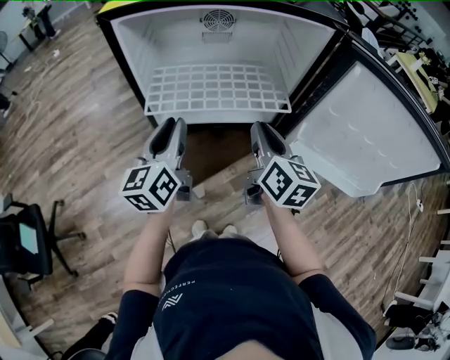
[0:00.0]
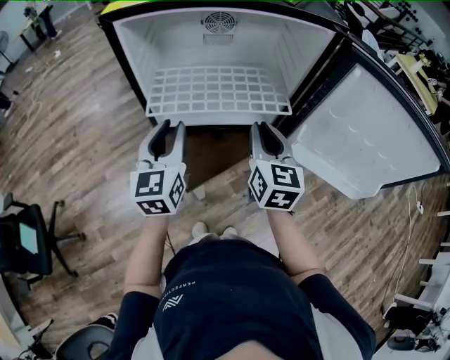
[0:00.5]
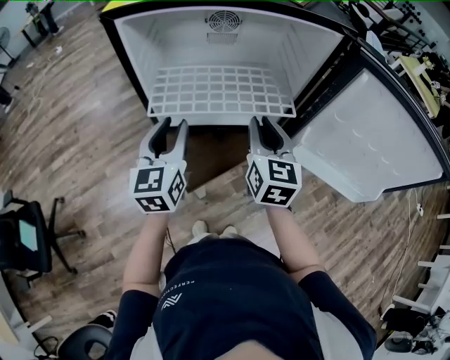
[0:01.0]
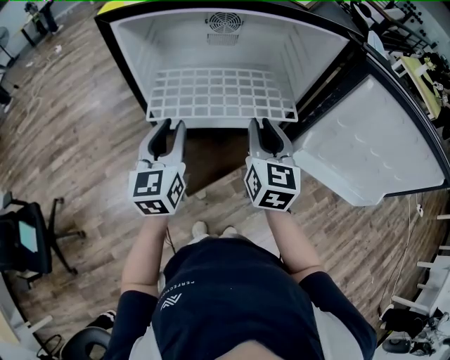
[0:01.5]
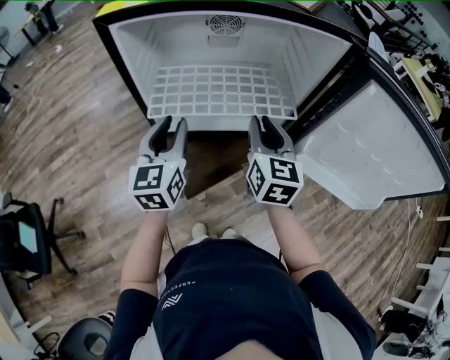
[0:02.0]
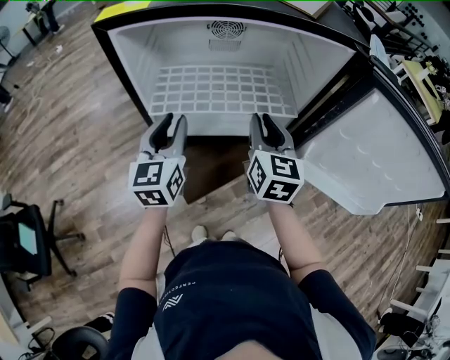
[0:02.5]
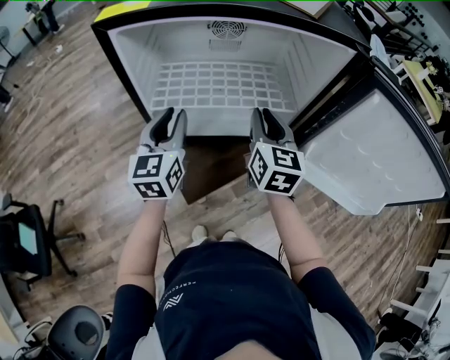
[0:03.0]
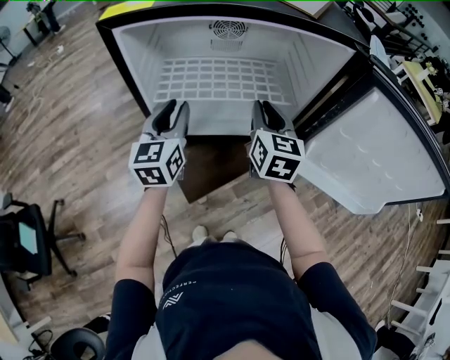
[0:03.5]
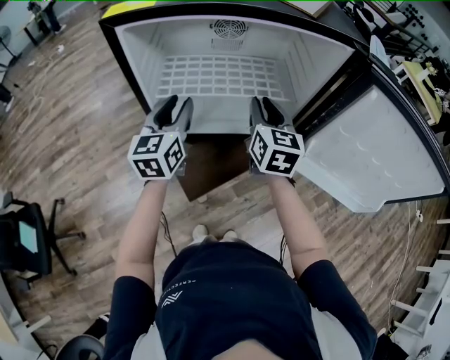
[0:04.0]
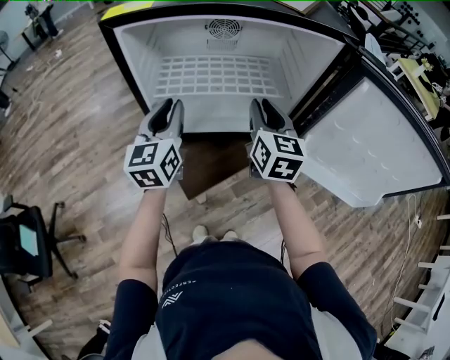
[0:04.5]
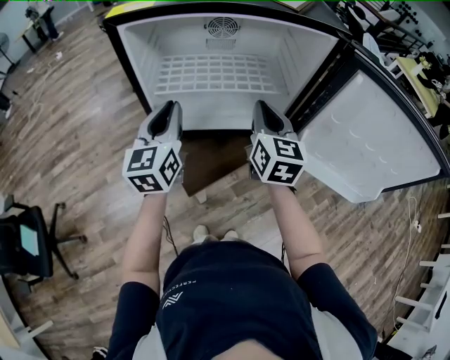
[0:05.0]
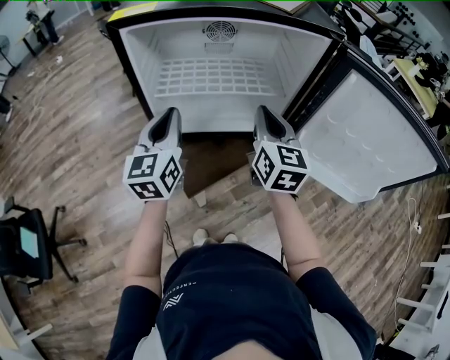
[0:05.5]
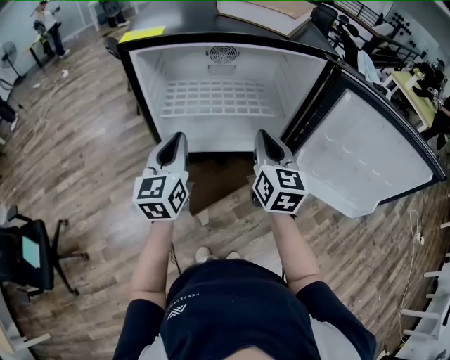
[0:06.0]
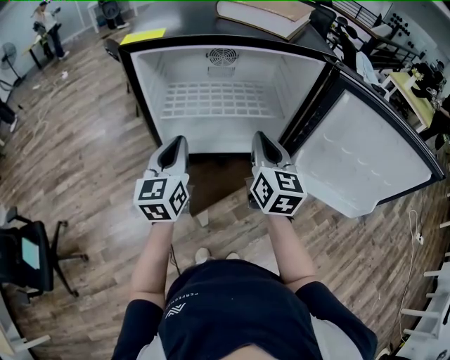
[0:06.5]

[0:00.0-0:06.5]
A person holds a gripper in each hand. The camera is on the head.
0:00.0 to 0:02.0: The right gripper rotates about 20 degrees.
0:04.5 to 0:06.5: The grippers both shift backward by approximately 5 cm.

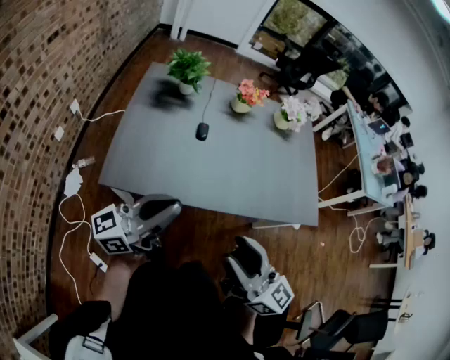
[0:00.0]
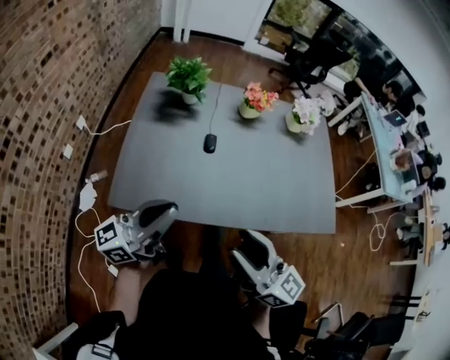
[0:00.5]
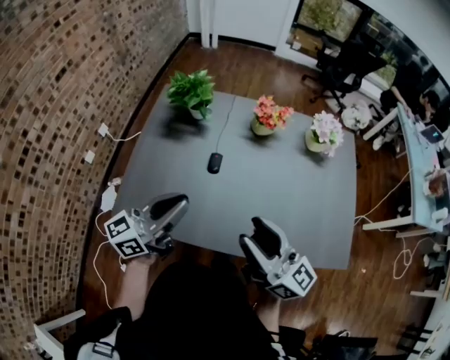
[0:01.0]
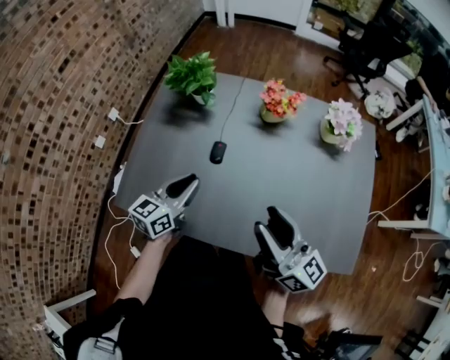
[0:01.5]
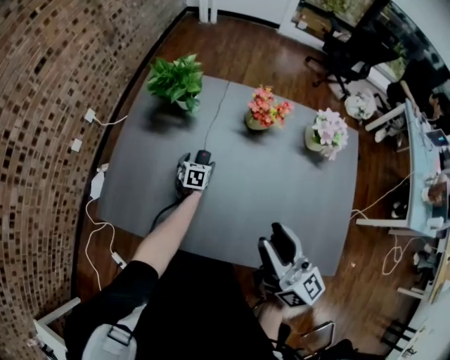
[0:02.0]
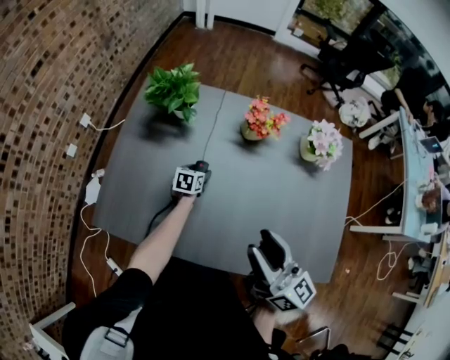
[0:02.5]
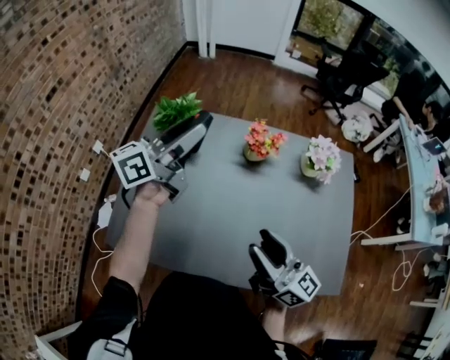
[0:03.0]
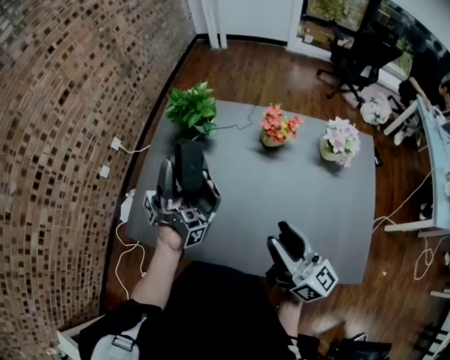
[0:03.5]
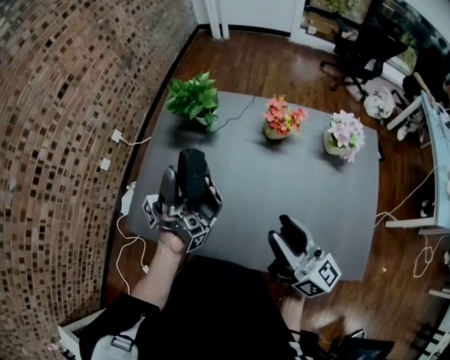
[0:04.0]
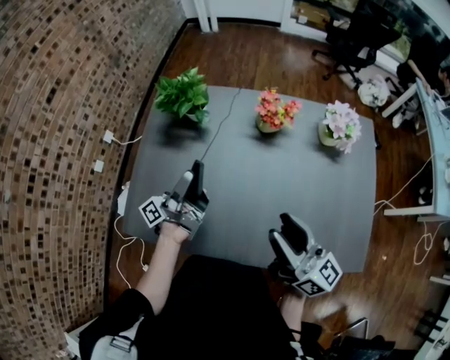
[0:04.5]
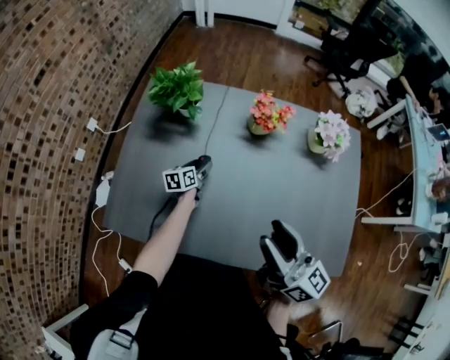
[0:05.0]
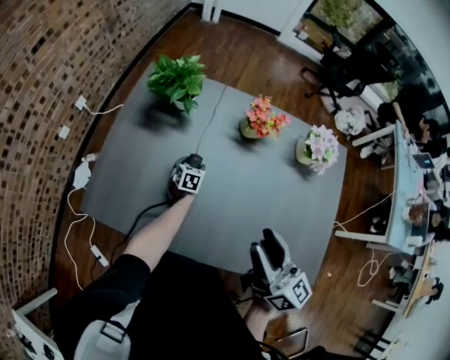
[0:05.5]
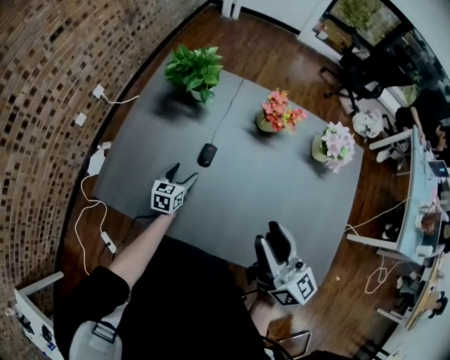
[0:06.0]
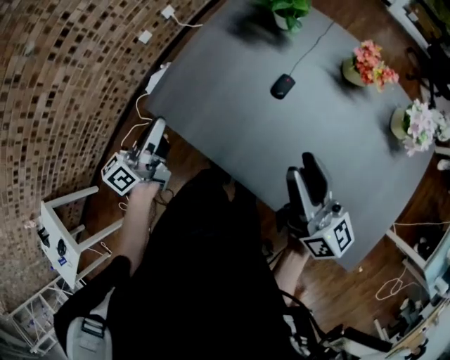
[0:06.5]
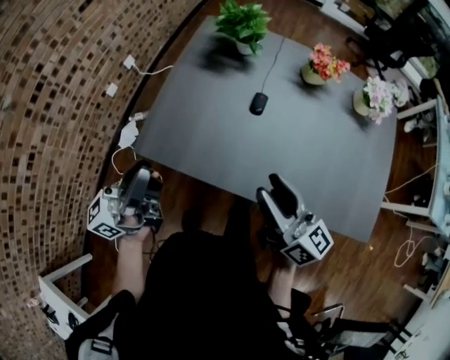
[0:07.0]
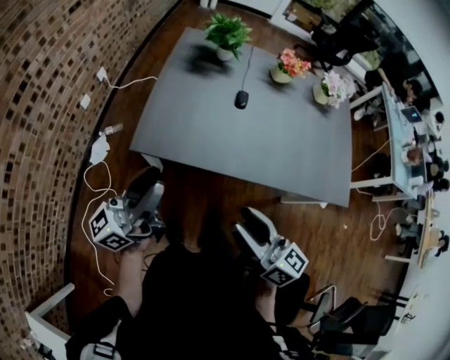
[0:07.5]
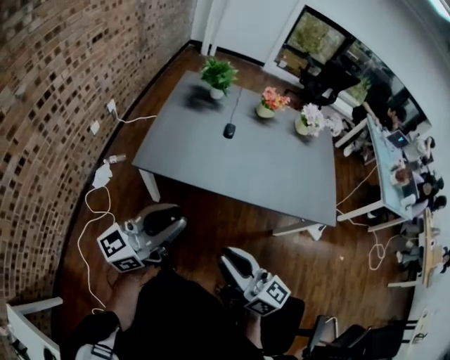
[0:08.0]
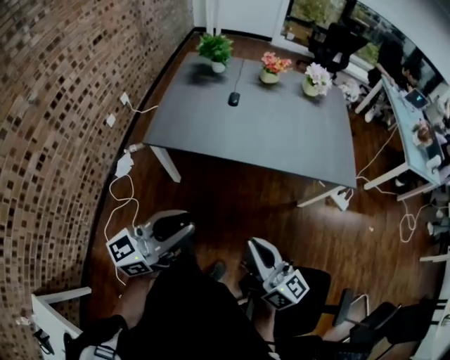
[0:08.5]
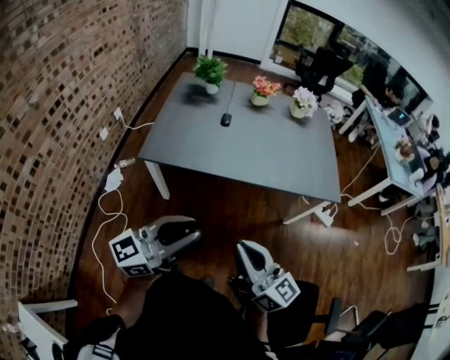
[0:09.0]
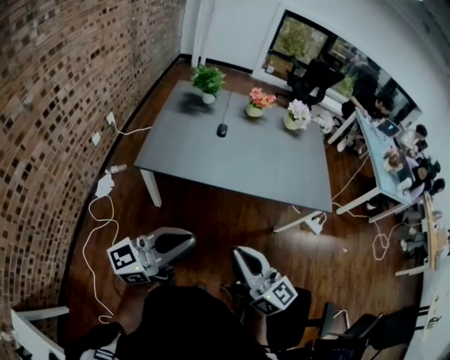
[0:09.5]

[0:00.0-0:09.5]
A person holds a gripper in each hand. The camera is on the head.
0:00.0 to 0:02.0: The right gripper changes place by some 40 cm. Meanwhile the left gripper ends up some 60 cm from where it was, points its fingers some 70 degrees further downward, and opens up.
0:02.0 to 0:04.0: The left gripper shifts about 50 cm upward, and points its fingers approximately 100 degrees further upward.
0:04.0 to 0:05.5: The left gripper is displaced downward by roughly 50 cm, and points its fingers roughly 100 degrees further downward.
0:05.5 to 0:07.5: The pair of grippers is taken to the left and backward, roughly 50 cm. The left gripper travels upward by some 40 cm, points its fingers roughly 80 degrees further upward, and closes.
0:07.5 to 0:09.5: Both grippers travel together backward and to the right, some 25 cm. The left gripper turns by approximately 30 degrees. Meanwhile the right gripper closes its fingers.

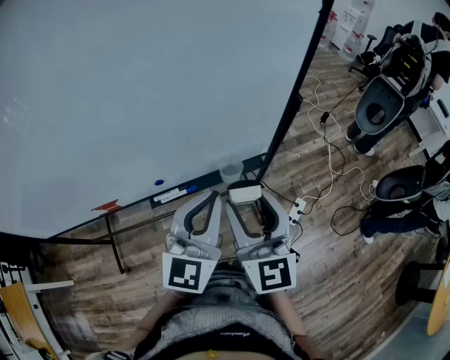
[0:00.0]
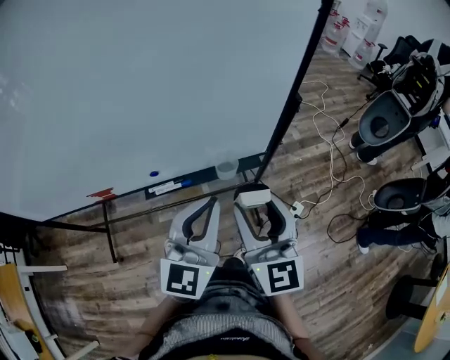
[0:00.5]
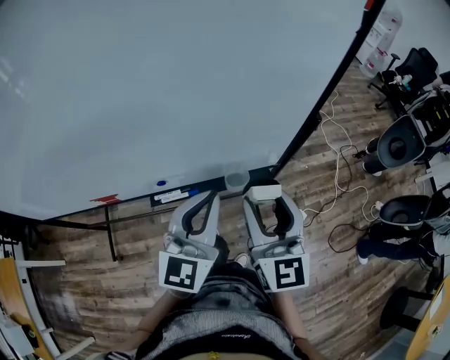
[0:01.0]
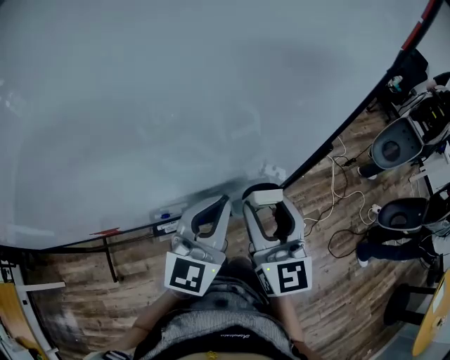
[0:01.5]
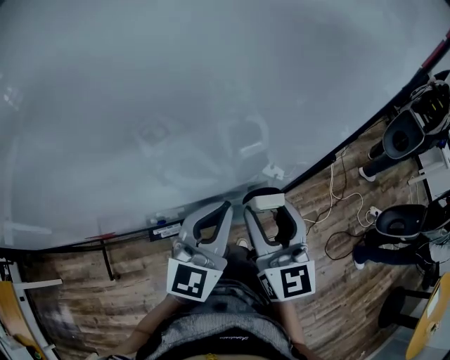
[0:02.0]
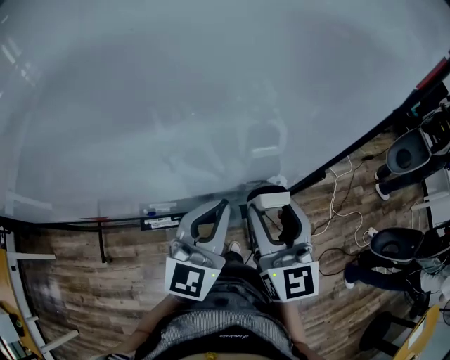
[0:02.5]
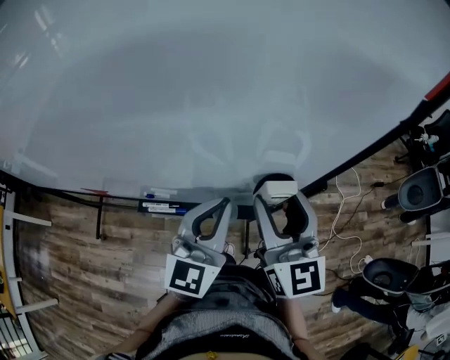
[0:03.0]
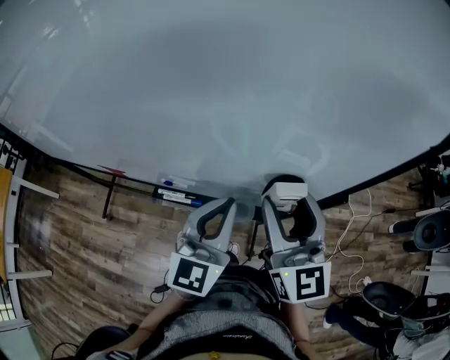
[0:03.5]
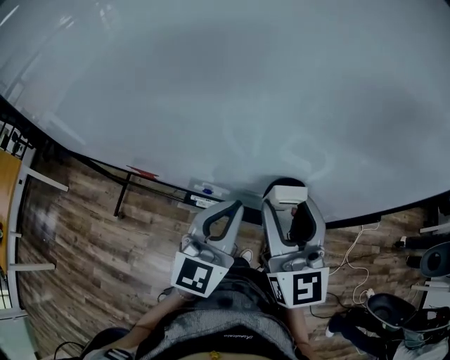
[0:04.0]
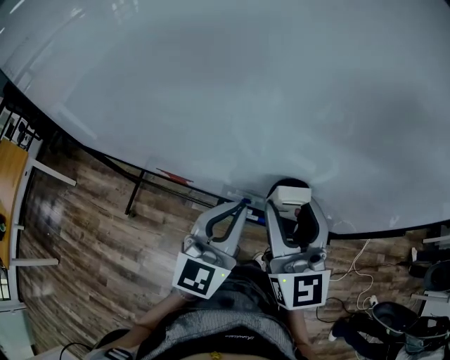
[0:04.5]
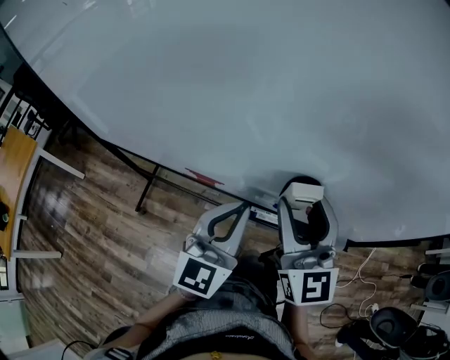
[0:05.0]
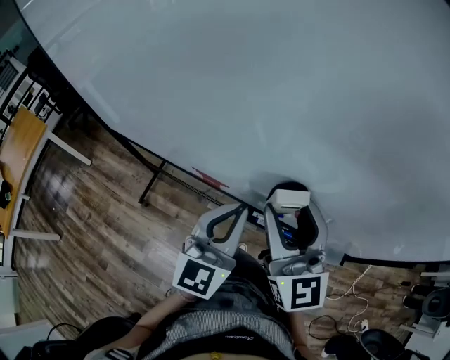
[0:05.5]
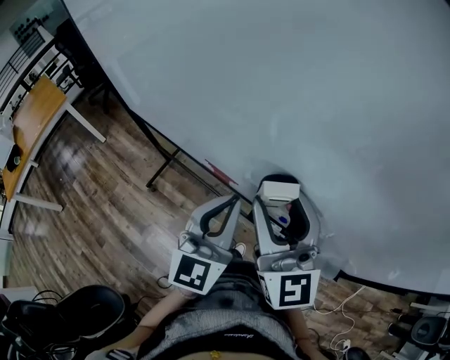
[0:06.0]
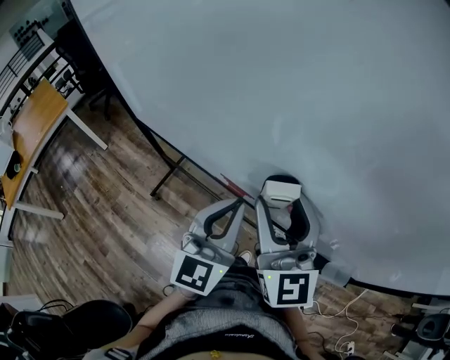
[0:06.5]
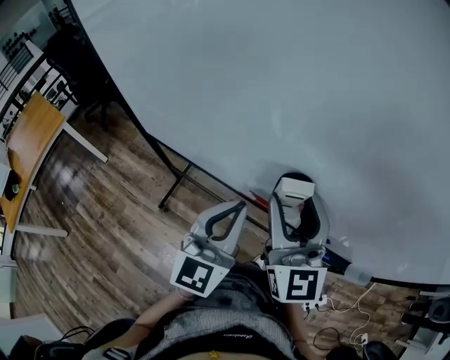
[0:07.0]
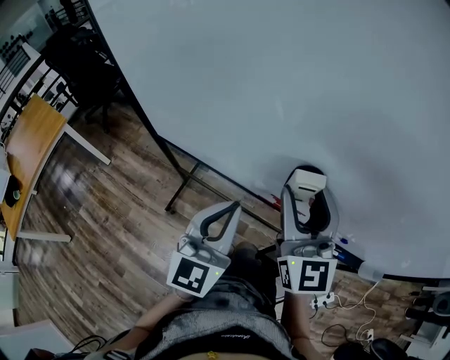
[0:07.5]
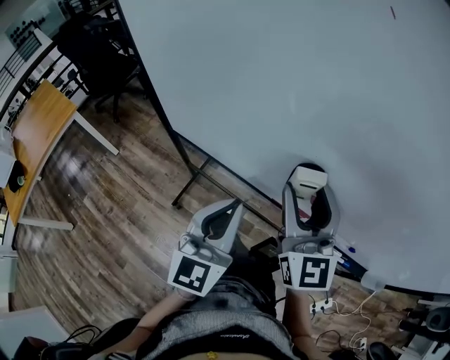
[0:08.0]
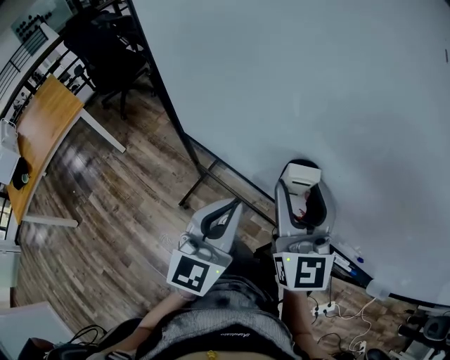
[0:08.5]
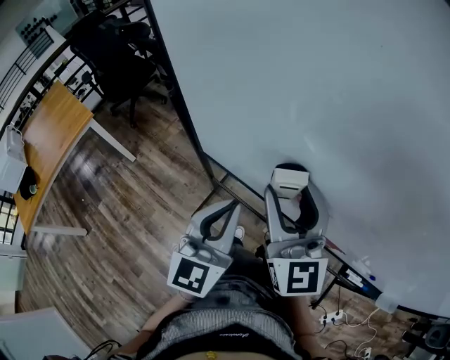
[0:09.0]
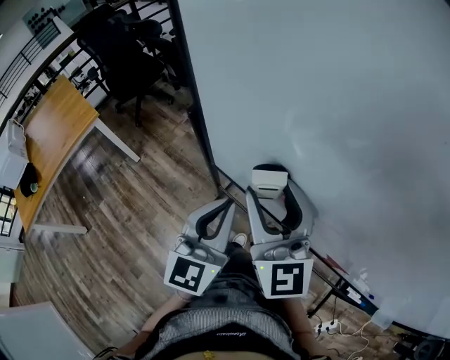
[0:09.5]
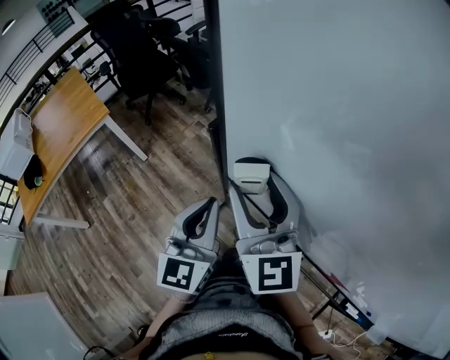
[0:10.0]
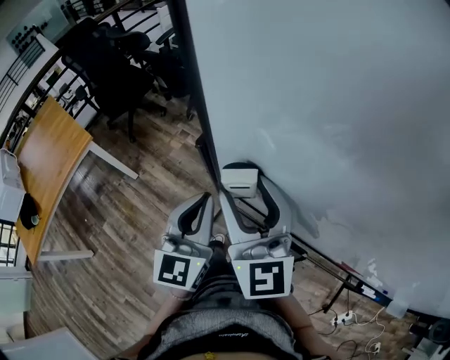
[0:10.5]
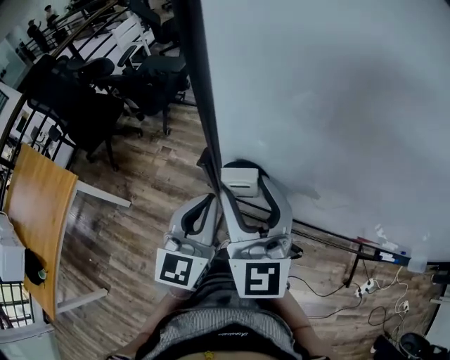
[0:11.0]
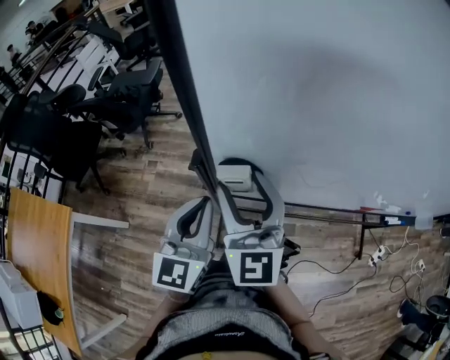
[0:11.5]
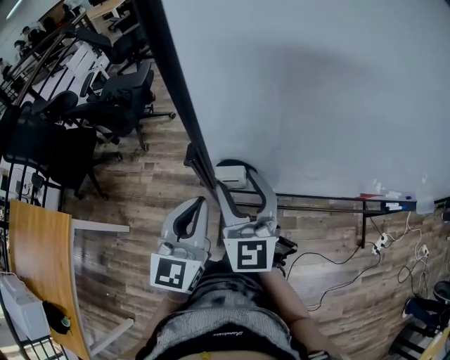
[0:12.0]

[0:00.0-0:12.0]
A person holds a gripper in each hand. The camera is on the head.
0:00.0 to 0:02.0: Both grippers travel together forward, some 15 cm.
0:02.0 to 0:04.0: The left gripper ends up approximately 10 cm from where it was, and rotates roughly 30 degrees. Meanwhile the right gripper moves about 10 cm, and rotates about 30 degrees.
0:04.0 to 0:06.0: Both grippers travel together to the left, approximately 25 cm. The left gripper swivels some 20 degrees; the right gripper turns by about 20 degrees.
0:06.0 to 0:08.0: The right gripper moves to the left and forward, approximately 25 cm. Meanwhile the left gripper moves to the left, some 25 cm.
0:08.0 to 0:10.0: The two grippers go about 35 cm to the left and forward. The left gripper changes its angle by roughly 20 degrees. The right gripper turns by approximately 20 degrees.
0:10.0 to 0:12.0: The right gripper travels downward by approximately 10 cm, and rotates some 40 degrees; the left gripper moves roughly 10 cm, and changes its angle by roughly 40 degrees.
